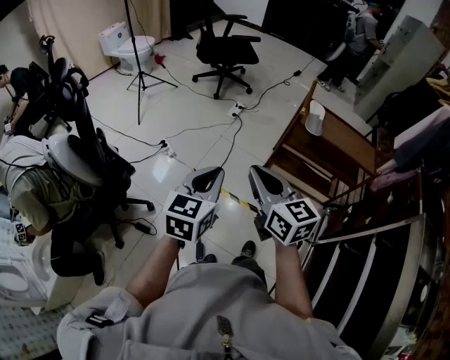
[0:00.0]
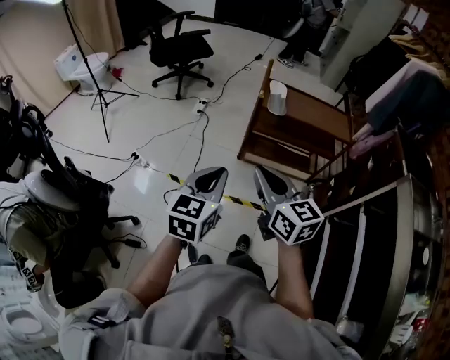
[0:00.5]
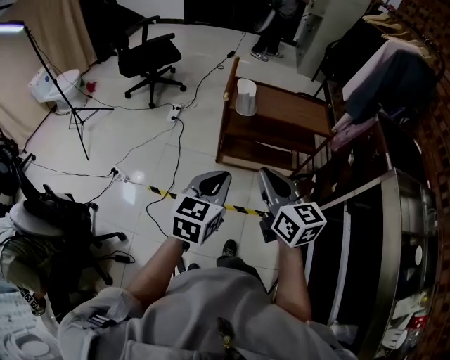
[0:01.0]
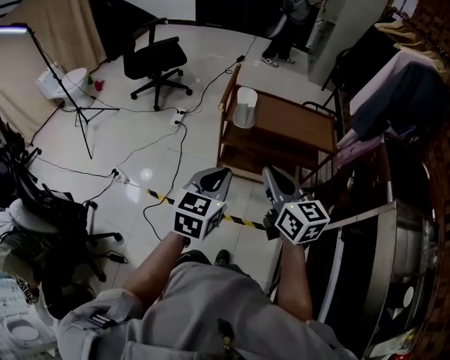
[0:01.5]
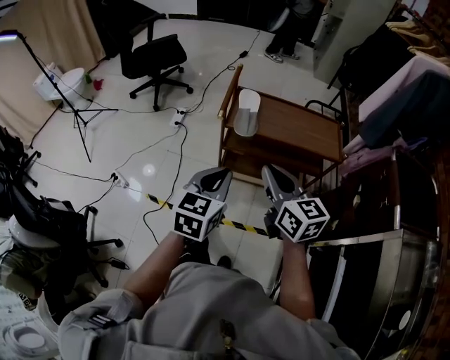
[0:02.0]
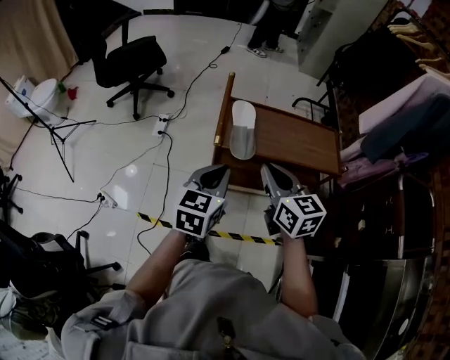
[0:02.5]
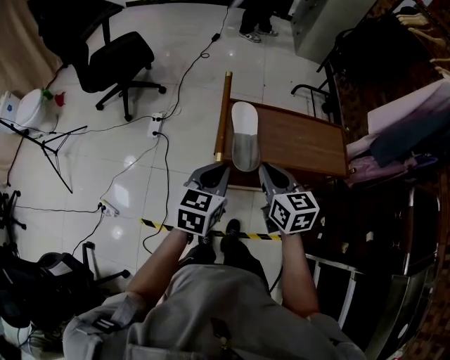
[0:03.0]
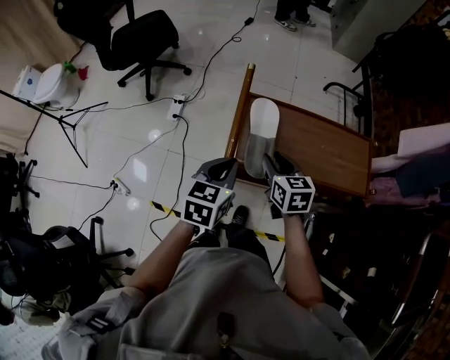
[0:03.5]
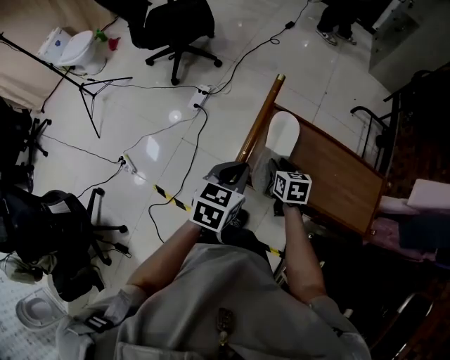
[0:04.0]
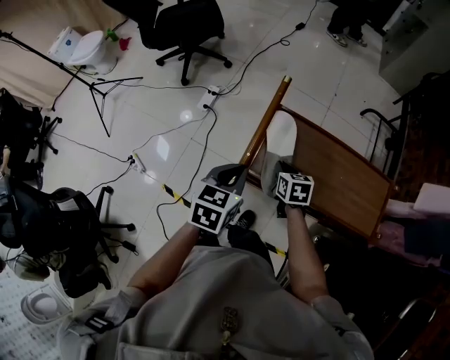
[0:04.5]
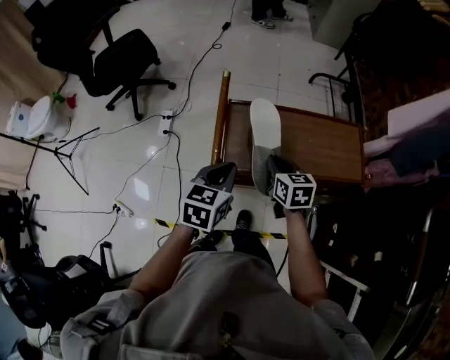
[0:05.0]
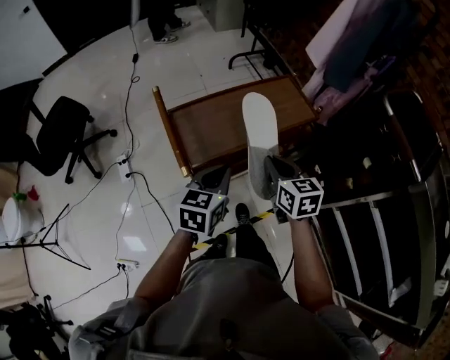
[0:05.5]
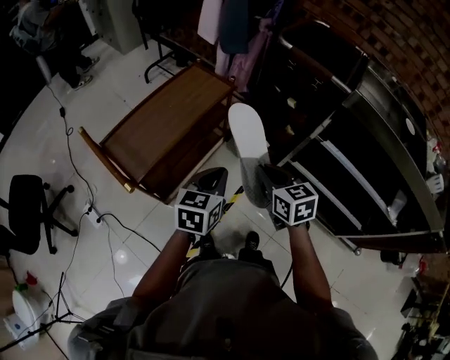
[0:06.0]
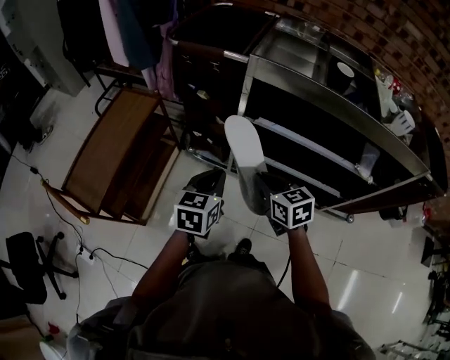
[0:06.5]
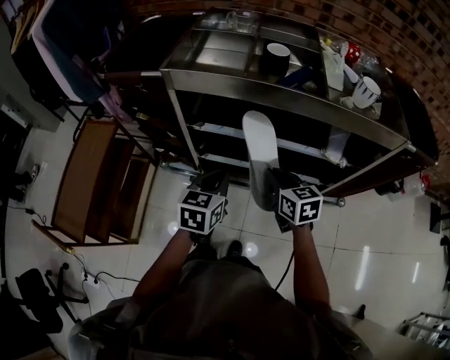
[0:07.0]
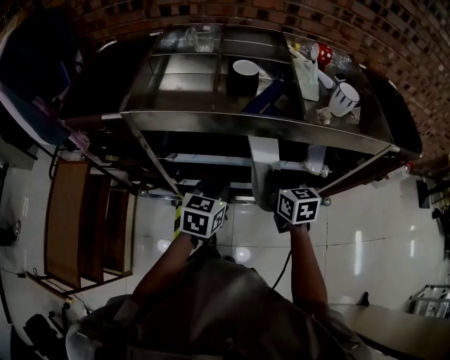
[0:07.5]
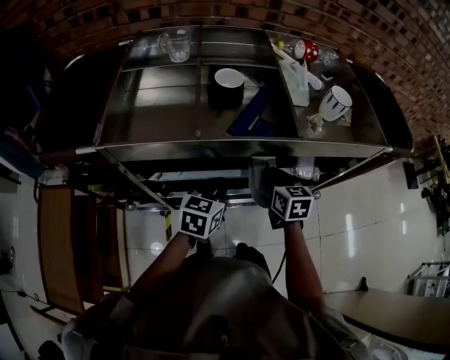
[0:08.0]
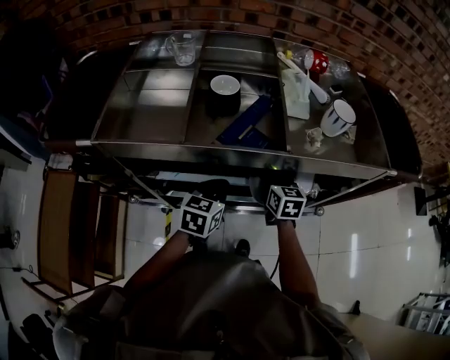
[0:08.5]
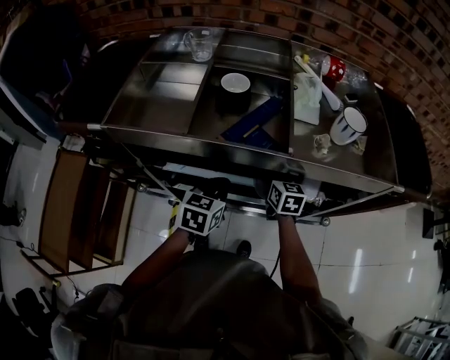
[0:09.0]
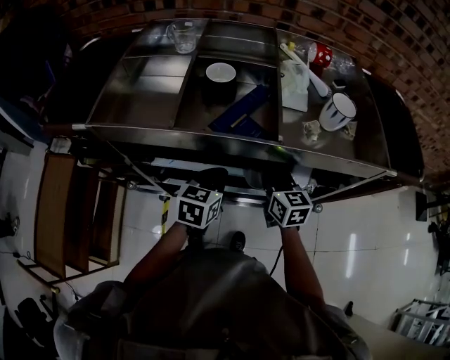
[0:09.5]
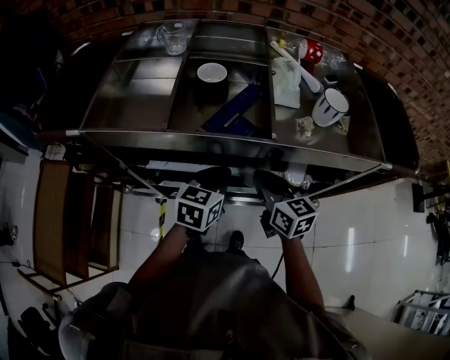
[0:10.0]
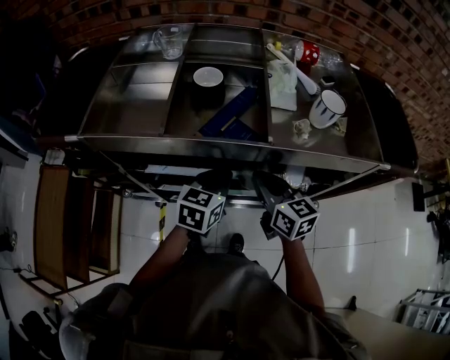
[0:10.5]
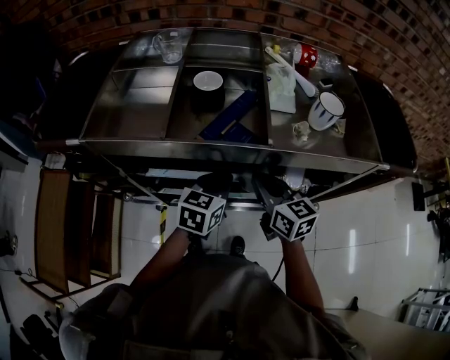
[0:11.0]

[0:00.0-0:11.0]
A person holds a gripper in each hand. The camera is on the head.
0.0 to 2.0 s: Both grippers are carried to the right and forward, approximately 40 cm.
2.0 to 3.5 s: The left gripper goes roughly 30 cm forward. Meanwhile the right gripper travels forward and downward by roughly 40 cm, changes its angle by approximately 20 degrees, and opens up.
3.5 to 5.5 s: The left gripper shifts by roughly 10 cm, and changes its angle by roughly 30 degrees. Meanwhile the right gripper changes place by some 20 cm, swivels approximately 30 degrees, and closes its fingers.
5.5 to 7.5 s: Both grippers are carried roughly 80 cm. The right gripper changes its angle by some 70 degrees. The left gripper changes its angle by about 70 degrees.
7.5 to 9.0 s: The right gripper shifts about 15 cm forward. The left gripper moves forward, some 5 cm.
9.0 to 11.0 s: The right gripper moves upward and backward, some 15 cm. Meanwhile the left gripper moves to the right, approximately 5 cm.

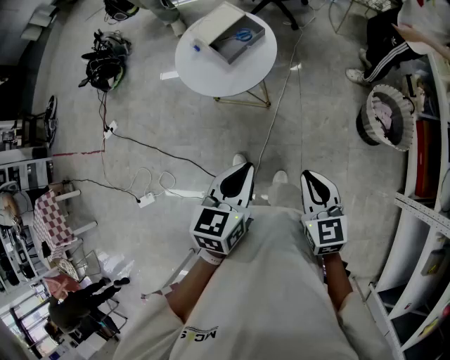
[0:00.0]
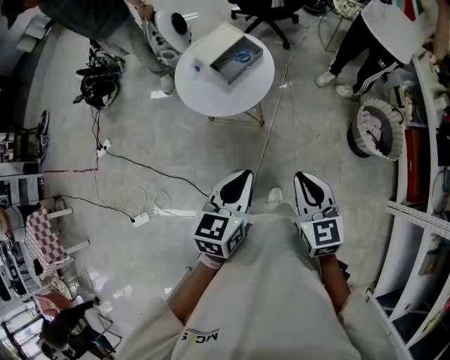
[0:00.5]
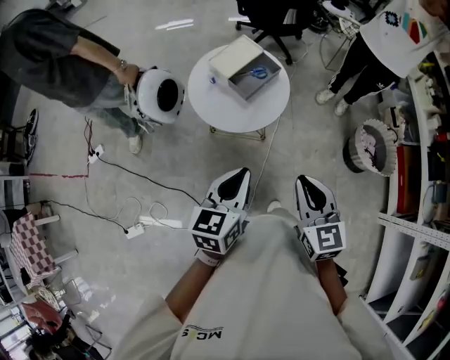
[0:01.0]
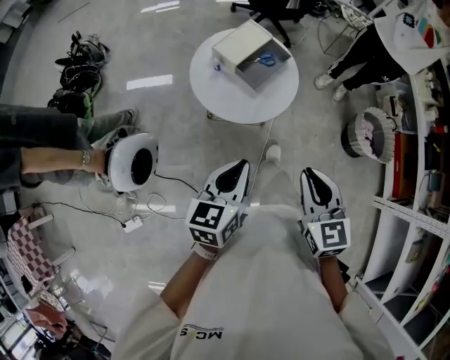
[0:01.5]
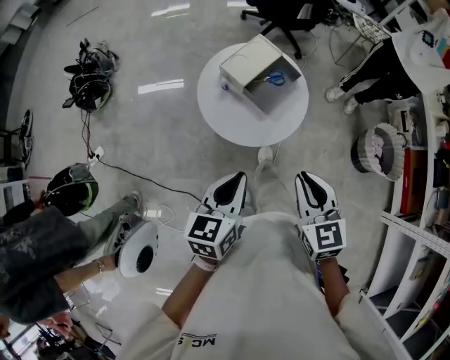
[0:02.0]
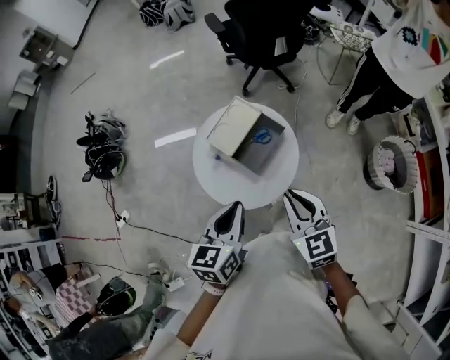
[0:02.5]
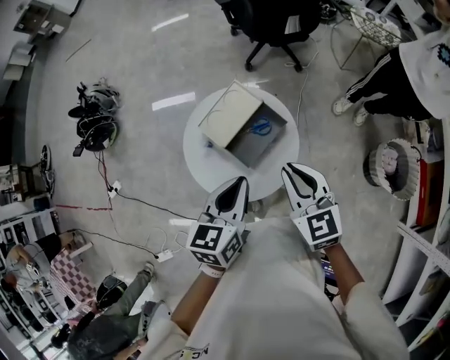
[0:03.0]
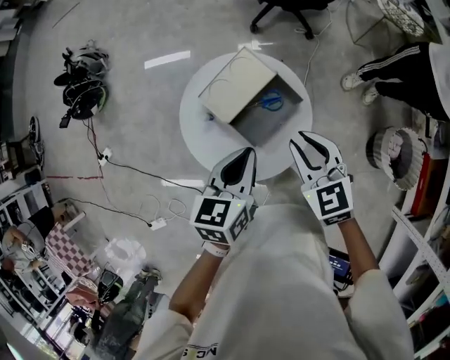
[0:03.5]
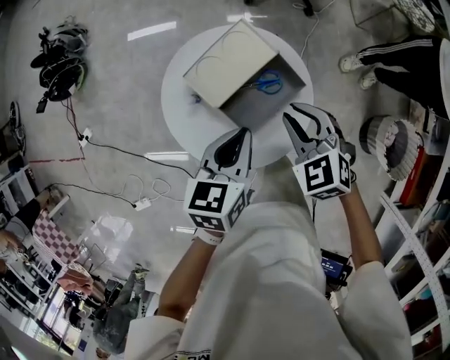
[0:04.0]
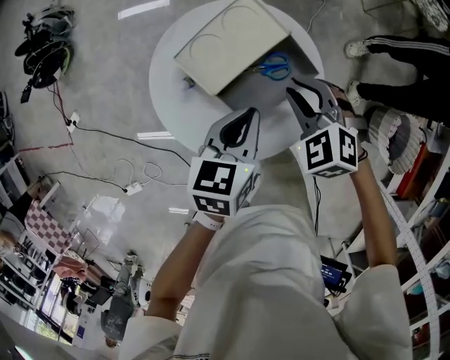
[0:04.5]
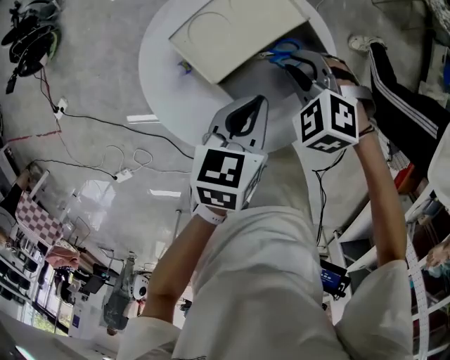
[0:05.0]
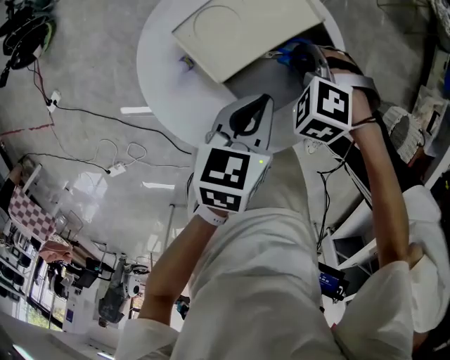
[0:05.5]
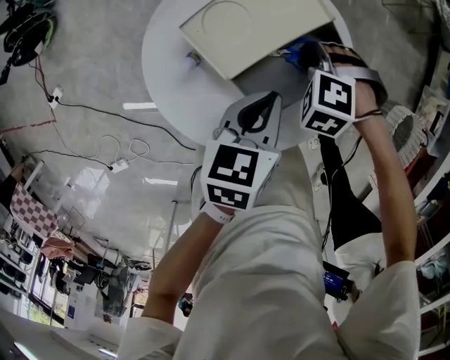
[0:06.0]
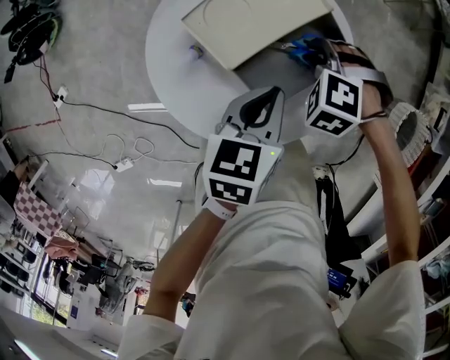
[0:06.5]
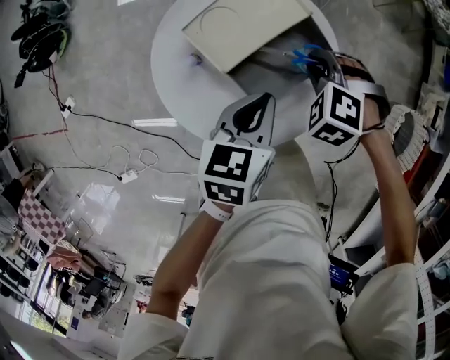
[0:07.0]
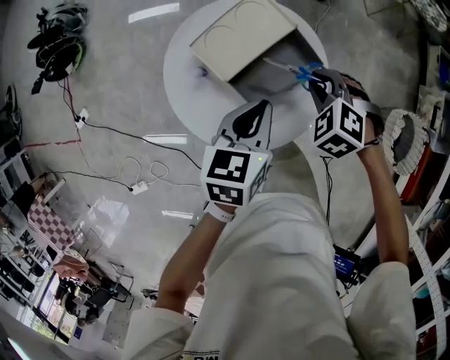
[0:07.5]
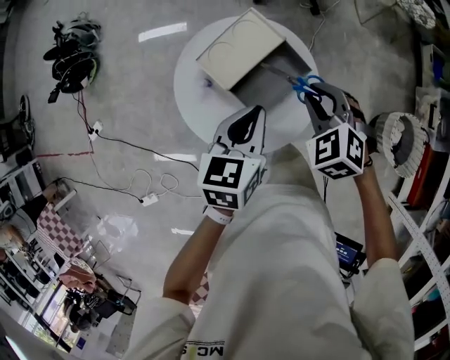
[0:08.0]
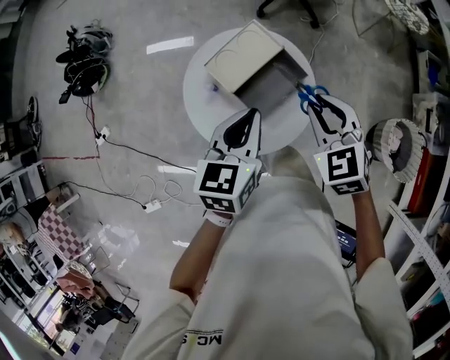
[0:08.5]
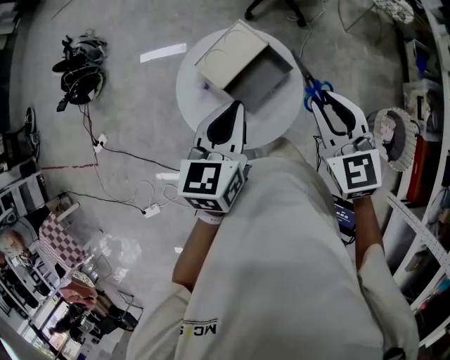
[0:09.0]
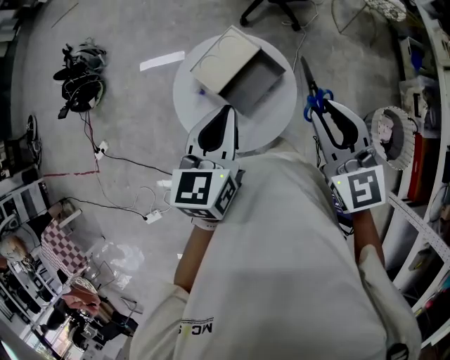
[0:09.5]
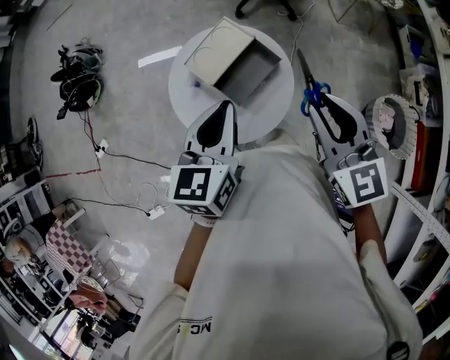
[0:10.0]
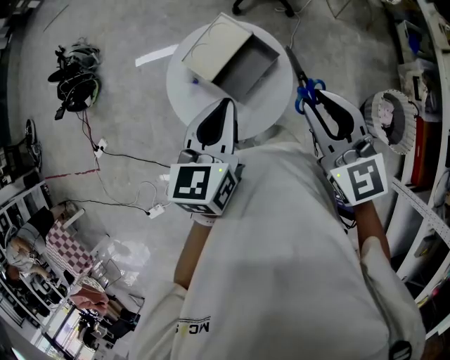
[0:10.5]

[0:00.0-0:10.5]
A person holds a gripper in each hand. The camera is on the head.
0.0 to 2.0 s: The two grippers go approximately 30 cm to the left and forward.
2.0 to 4.0 s: Both grippers travel together forward and downward, roughly 35 cm. The right gripper rotates about 40 degrees.
4.0 to 6.5 s: Both grippers move downward, roughly 15 cm. The right gripper rotates some 50 degrees.
6.5 to 8.5 s: The two grippers go some 25 cm upward. The right gripper points its fingers some 30 degrees further upward. The left gripper changes its angle by about 20 degrees.
8.5 to 10.5 s: The left gripper travels upward by about 5 cm; the right gripper goes about 15 cm upward and backward, and turns by roughly 30 degrees.

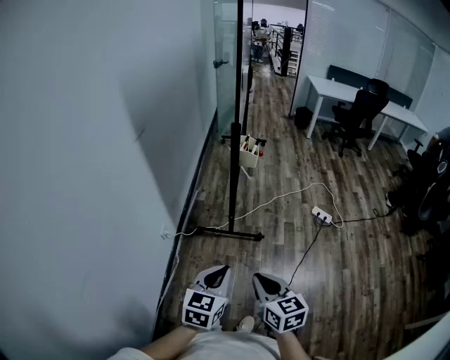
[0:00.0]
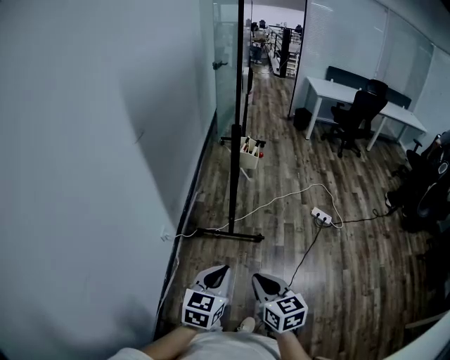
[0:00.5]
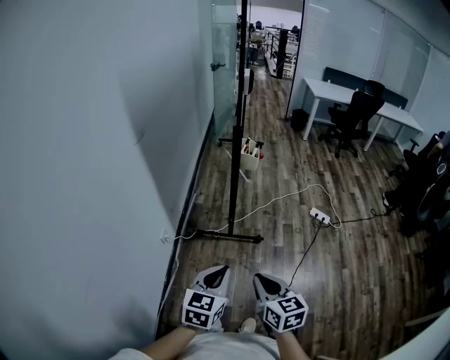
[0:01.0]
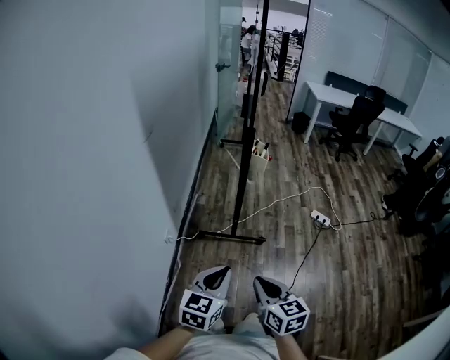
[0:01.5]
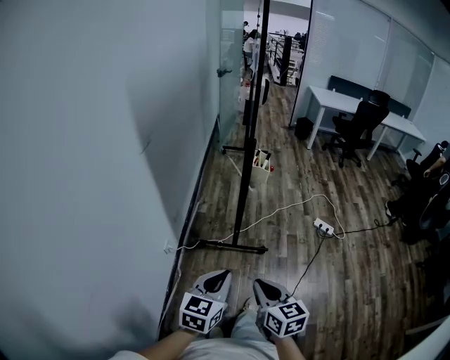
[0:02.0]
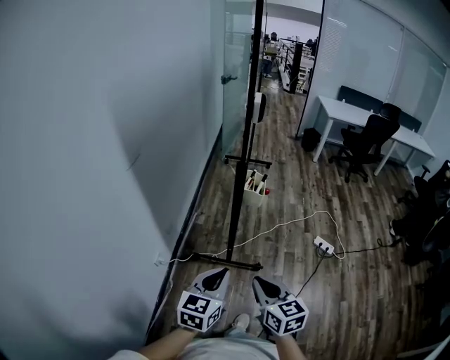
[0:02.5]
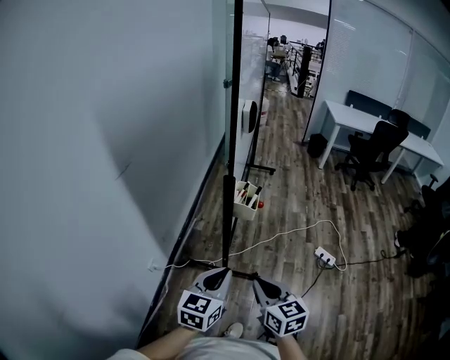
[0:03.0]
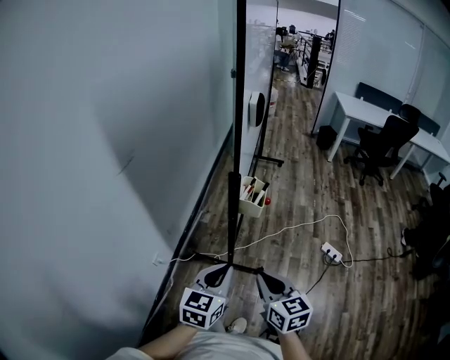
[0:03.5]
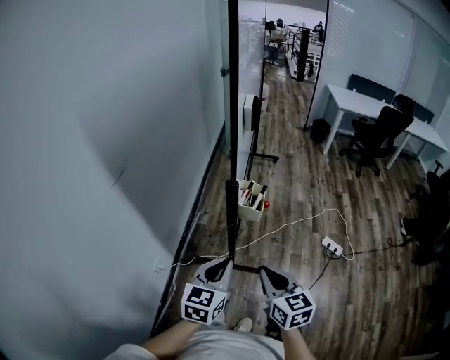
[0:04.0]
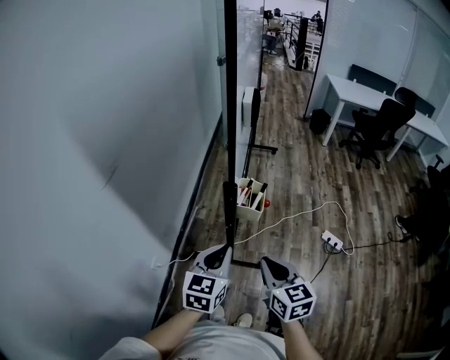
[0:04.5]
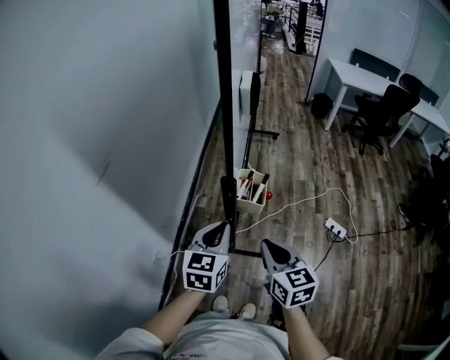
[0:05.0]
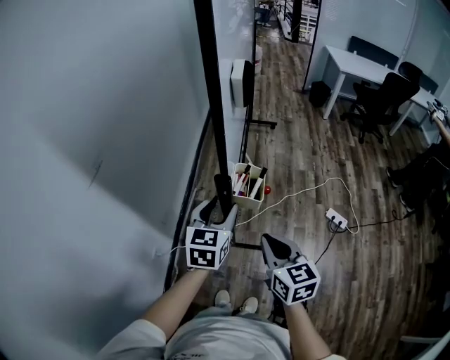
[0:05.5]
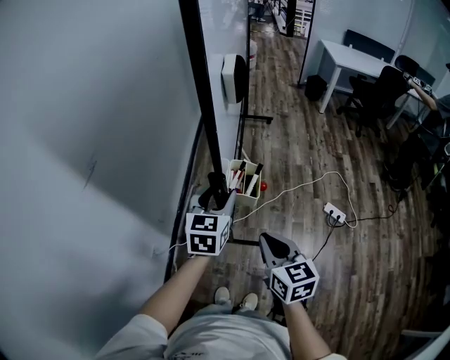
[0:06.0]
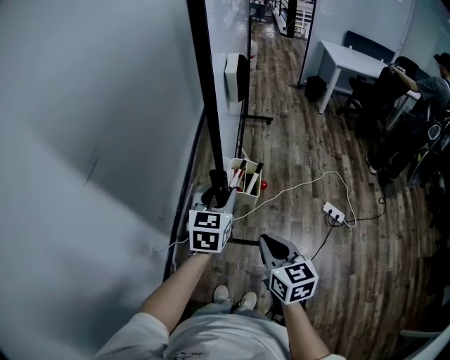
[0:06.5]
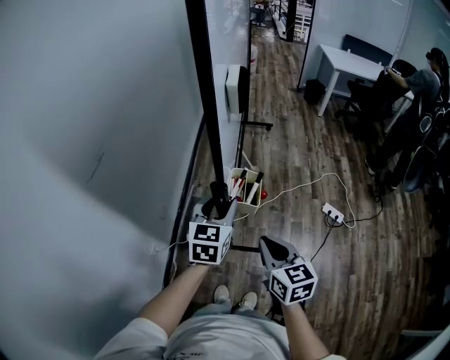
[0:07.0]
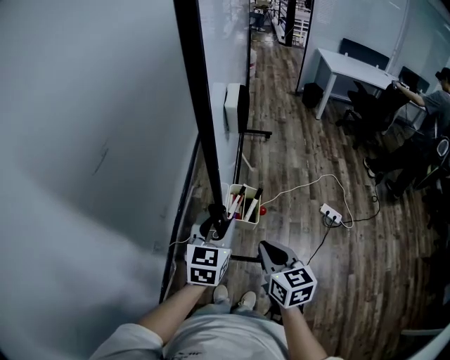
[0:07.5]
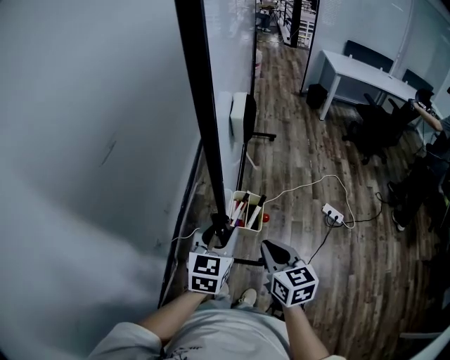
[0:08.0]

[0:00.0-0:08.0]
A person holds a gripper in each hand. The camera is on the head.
0.0 to 2.0 s: Both grippers travel together to the left and forward, roughly 10 cm.
2.0 to 4.0 s: The right gripper moves forward and to the right, approximately 30 cm. Meanwhile the left gripper goes roughly 25 cm forward.
4.0 to 6.0 s: The left gripper heads forward, covering approximately 20 cm, and opens its fingers. The right gripper is displaced forward by roughly 10 cm.
6.0 to 8.0 s: The right gripper travels backward by some 10 cm; the left gripper moves backward, approximately 20 cm.
